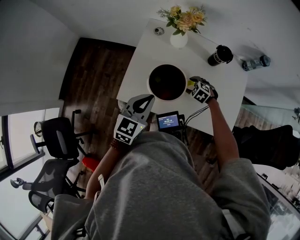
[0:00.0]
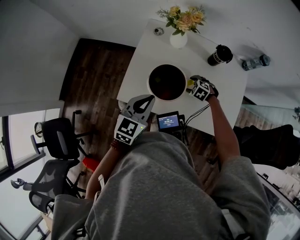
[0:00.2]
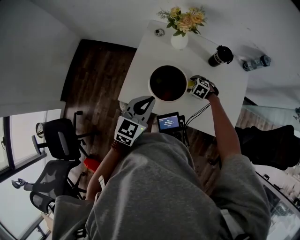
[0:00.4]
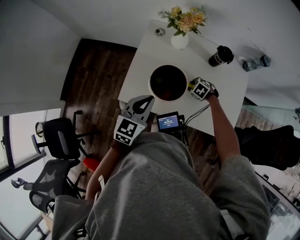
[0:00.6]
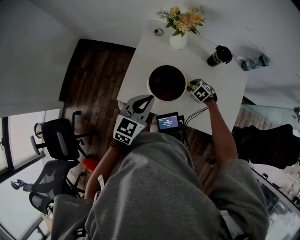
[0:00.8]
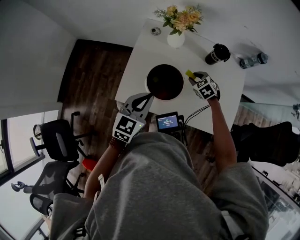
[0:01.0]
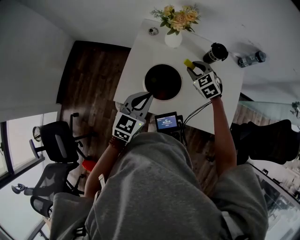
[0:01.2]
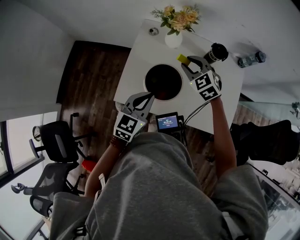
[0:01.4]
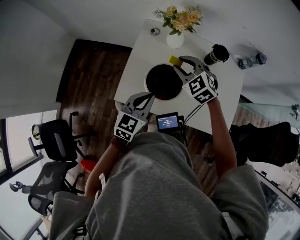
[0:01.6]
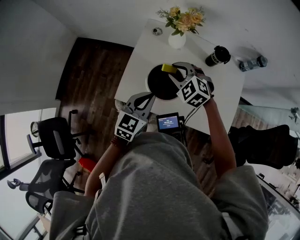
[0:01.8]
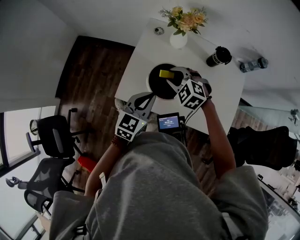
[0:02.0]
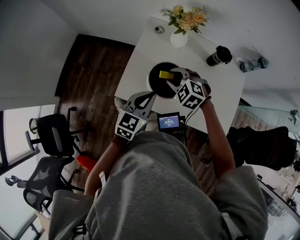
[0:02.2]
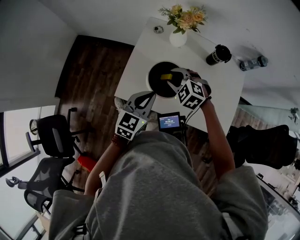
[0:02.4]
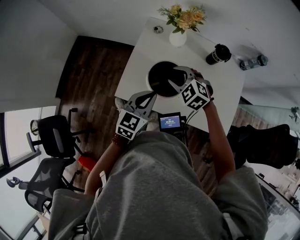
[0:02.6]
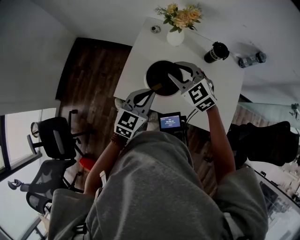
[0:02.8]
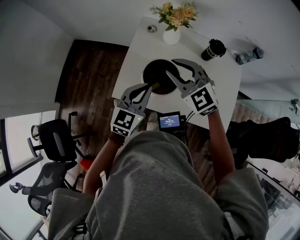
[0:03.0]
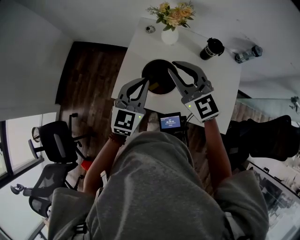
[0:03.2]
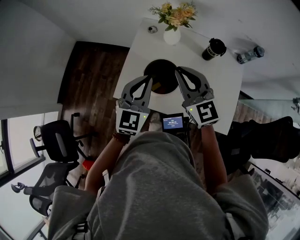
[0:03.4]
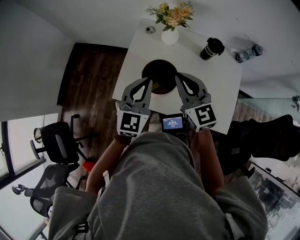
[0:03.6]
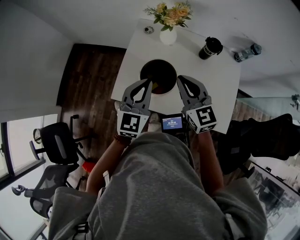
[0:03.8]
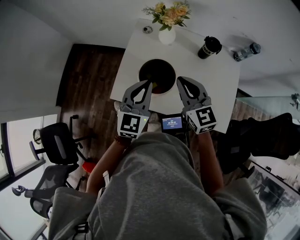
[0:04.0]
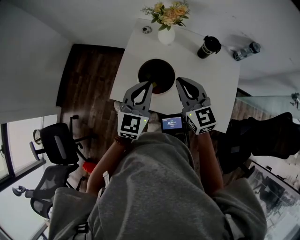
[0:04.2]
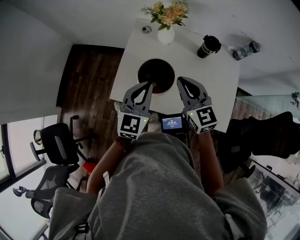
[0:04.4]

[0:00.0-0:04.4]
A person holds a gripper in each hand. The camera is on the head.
0:00.0 to 0:01.4: The right gripper shifts roughly 25 cm upward, swivels roughly 30 degrees, and closes its fingers.
0:01.4 to 0:03.0: The right gripper is displaced upward, to the left and backward by approximately 15 cm, and turns by some 20 degrees.
0:03.0 to 0:04.4: The right gripper moves to the right, some 5 cm, swivels about 30 degrees, and closes its fingers.

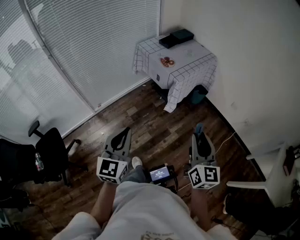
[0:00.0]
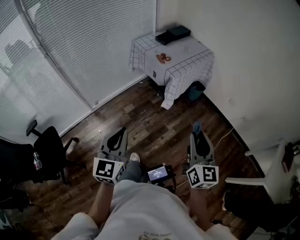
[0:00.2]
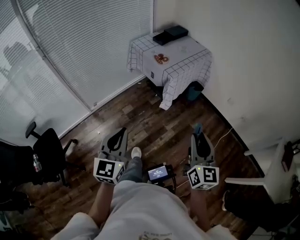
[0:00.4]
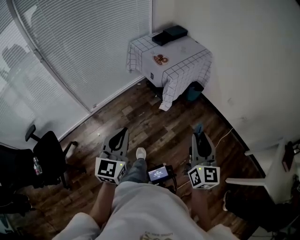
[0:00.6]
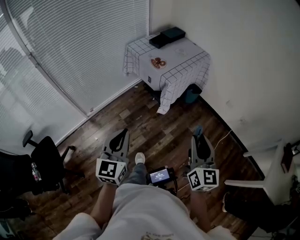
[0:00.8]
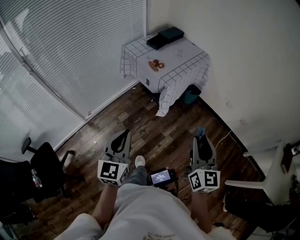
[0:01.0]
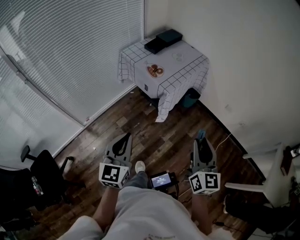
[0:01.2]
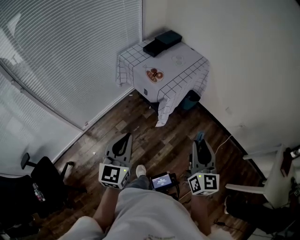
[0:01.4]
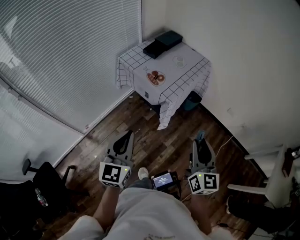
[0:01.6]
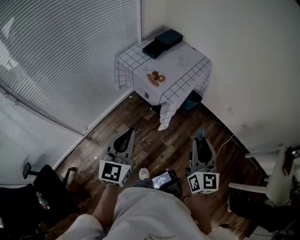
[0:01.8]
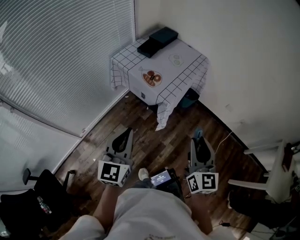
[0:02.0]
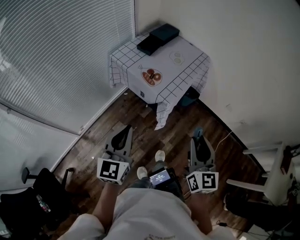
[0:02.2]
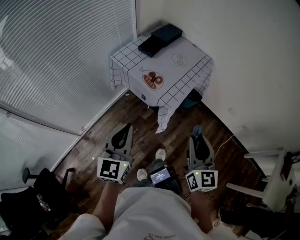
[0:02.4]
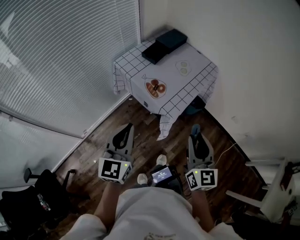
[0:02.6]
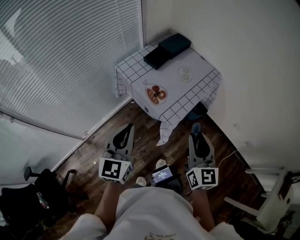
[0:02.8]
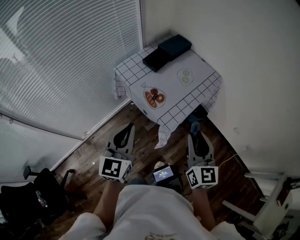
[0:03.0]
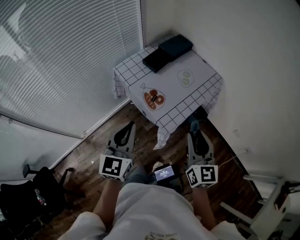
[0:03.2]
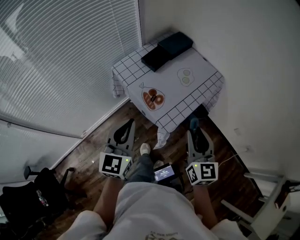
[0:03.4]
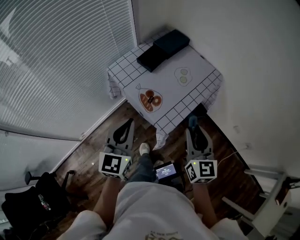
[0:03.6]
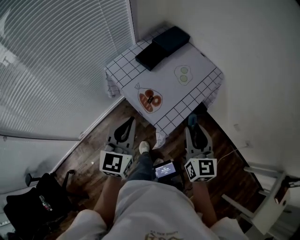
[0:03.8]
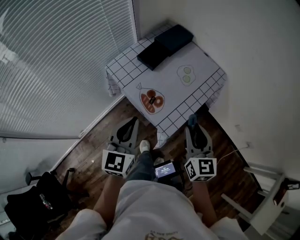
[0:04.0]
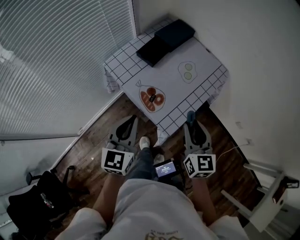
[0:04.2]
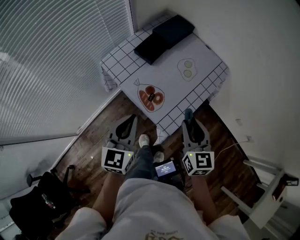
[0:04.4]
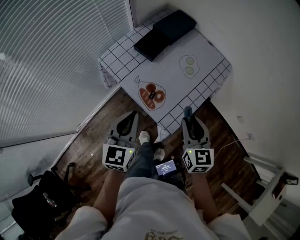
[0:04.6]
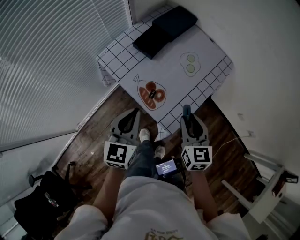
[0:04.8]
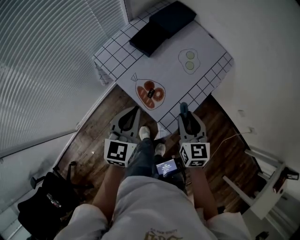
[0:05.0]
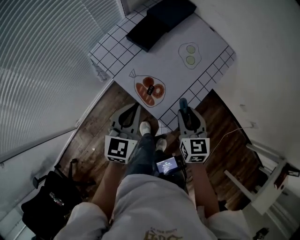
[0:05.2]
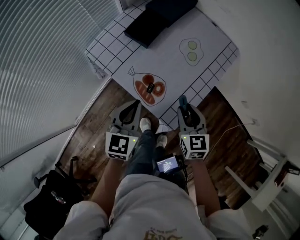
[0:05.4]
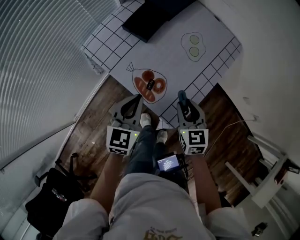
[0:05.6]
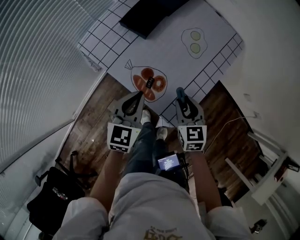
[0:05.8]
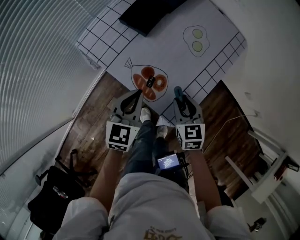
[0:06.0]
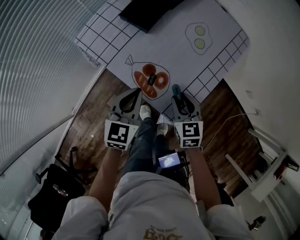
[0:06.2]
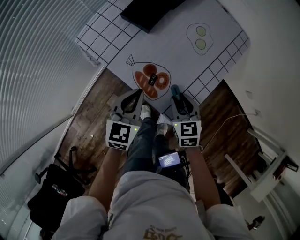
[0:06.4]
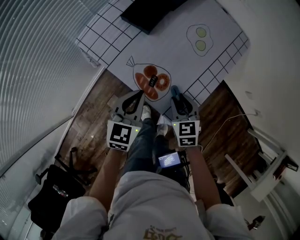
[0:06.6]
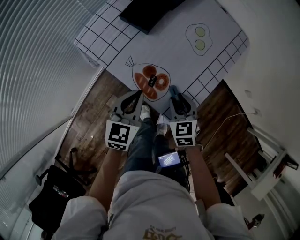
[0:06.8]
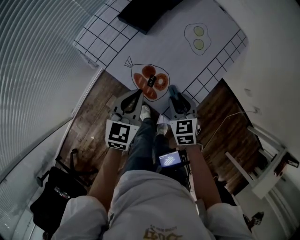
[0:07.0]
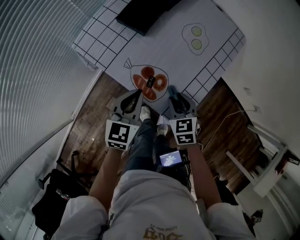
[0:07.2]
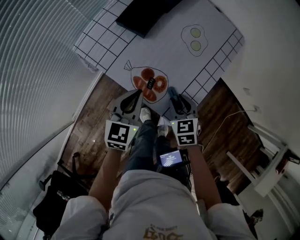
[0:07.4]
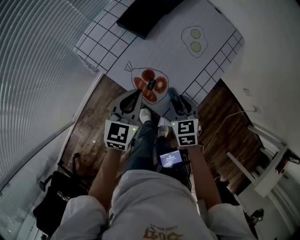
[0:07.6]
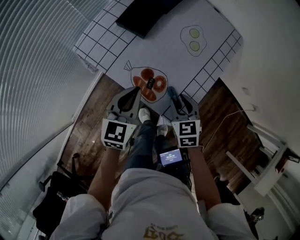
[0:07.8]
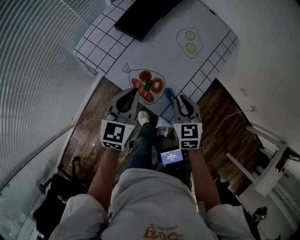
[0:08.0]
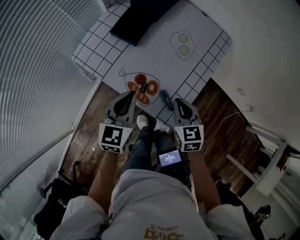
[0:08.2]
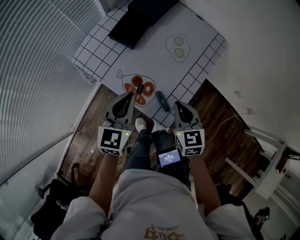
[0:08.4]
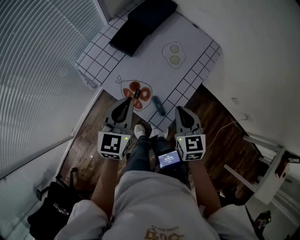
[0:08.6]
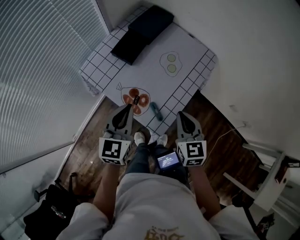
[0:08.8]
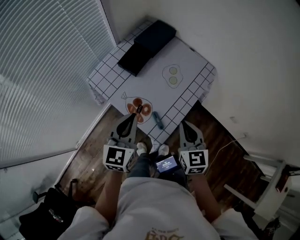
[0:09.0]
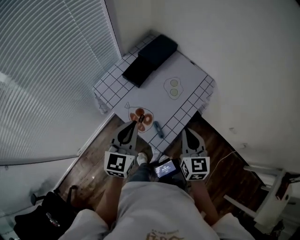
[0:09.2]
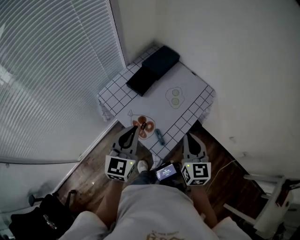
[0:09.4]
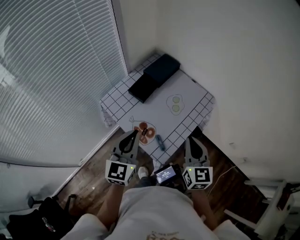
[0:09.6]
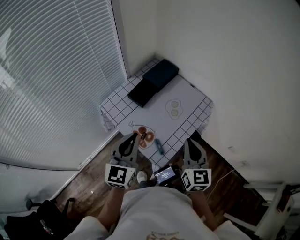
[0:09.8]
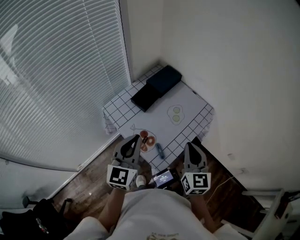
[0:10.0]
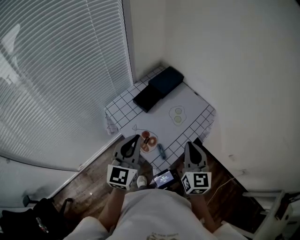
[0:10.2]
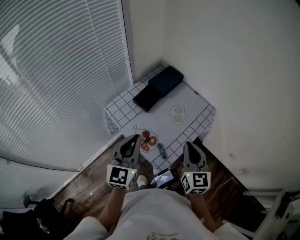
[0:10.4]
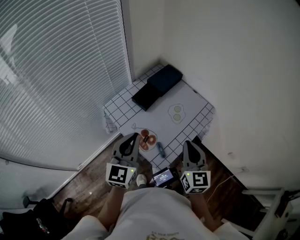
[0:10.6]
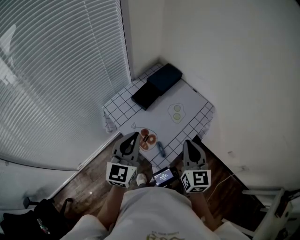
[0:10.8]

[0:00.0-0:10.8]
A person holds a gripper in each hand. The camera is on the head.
0:00.0 to 0:01.6: Both grippers move forward, approximately 25 cm.
0:01.6 to 0:03.0: Both grippers travel together forward, approximately 25 cm.
0:03.0 to 0:04.6: Both grippers travel together forward and downward, about 20 cm.
0:04.6 to 0:06.2: The right gripper is displaced downward by some 15 cm, while the left gripper moves downward and forward, roughly 15 cm.
0:06.2 to 0:07.8: The grippers move only a little.
0:07.8 to 0:09.2: The right gripper travels upward and to the right by about 20 cm, rotates roughly 30 degrees, and closes its fingers. The left gripper is displaced upward by about 15 cm.
0:09.2 to 0:10.8: The two grippers go roughly 5 cm upward.

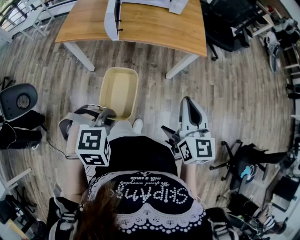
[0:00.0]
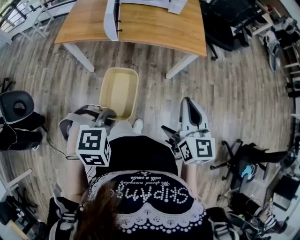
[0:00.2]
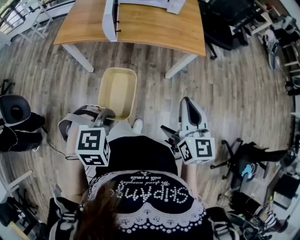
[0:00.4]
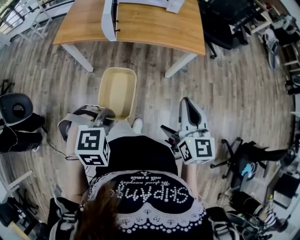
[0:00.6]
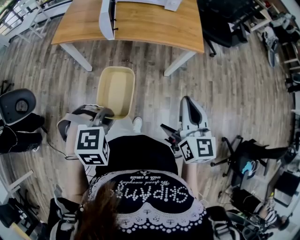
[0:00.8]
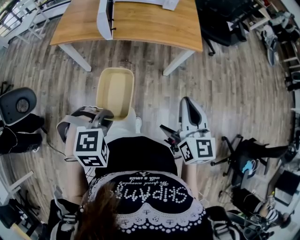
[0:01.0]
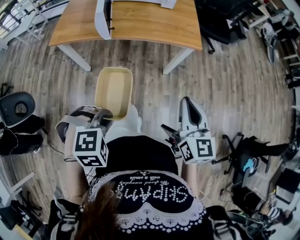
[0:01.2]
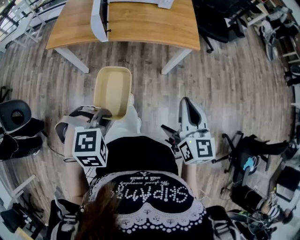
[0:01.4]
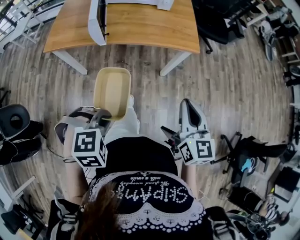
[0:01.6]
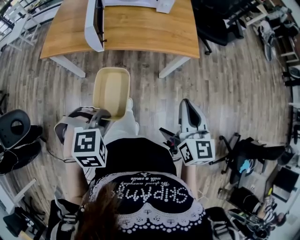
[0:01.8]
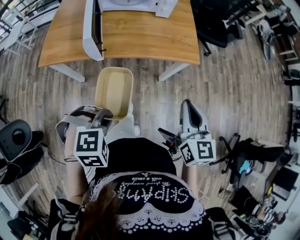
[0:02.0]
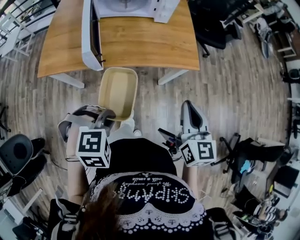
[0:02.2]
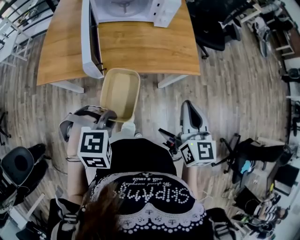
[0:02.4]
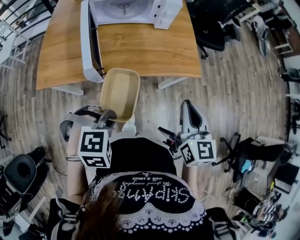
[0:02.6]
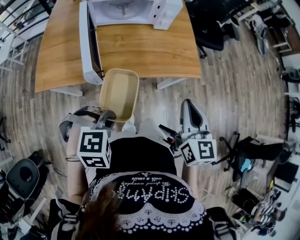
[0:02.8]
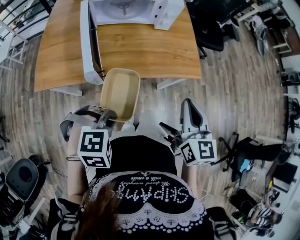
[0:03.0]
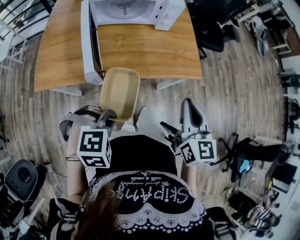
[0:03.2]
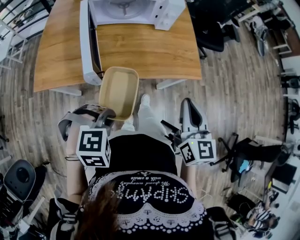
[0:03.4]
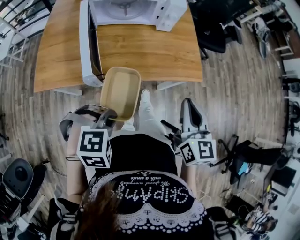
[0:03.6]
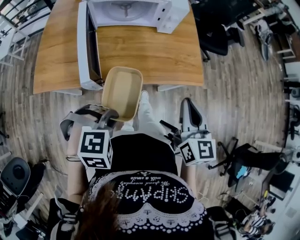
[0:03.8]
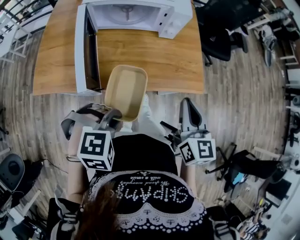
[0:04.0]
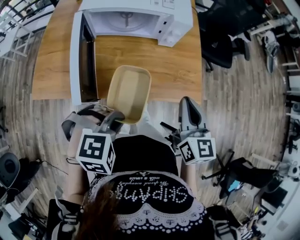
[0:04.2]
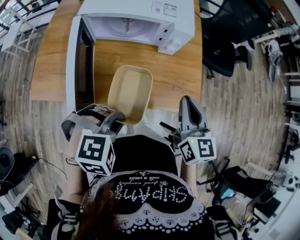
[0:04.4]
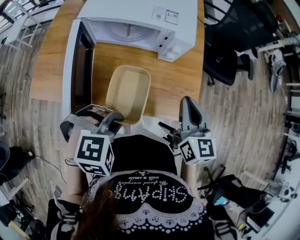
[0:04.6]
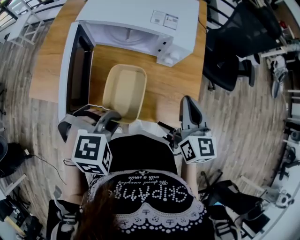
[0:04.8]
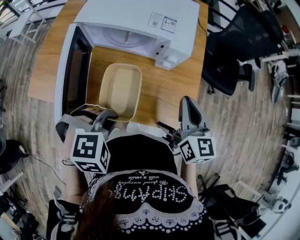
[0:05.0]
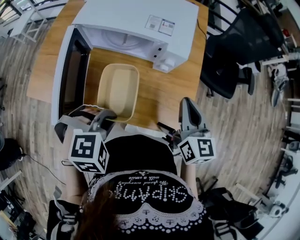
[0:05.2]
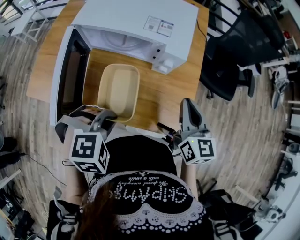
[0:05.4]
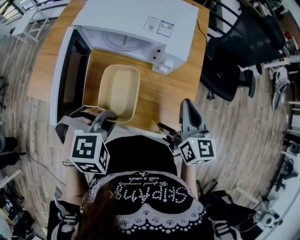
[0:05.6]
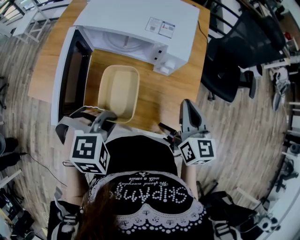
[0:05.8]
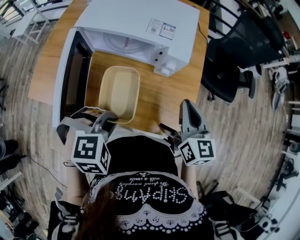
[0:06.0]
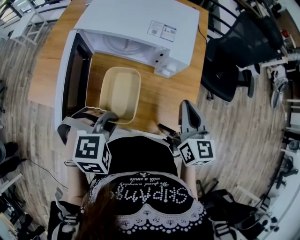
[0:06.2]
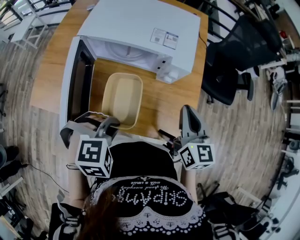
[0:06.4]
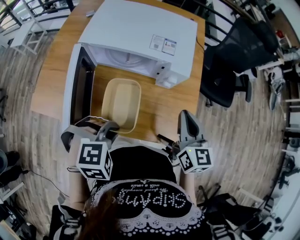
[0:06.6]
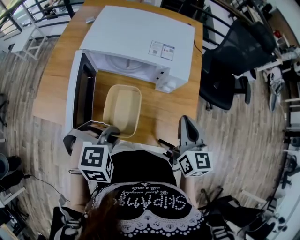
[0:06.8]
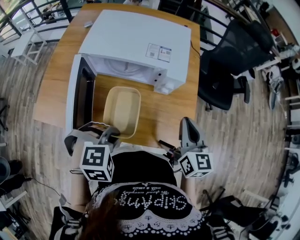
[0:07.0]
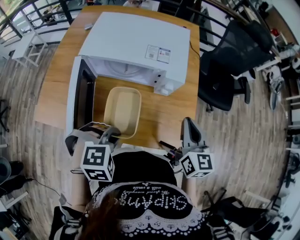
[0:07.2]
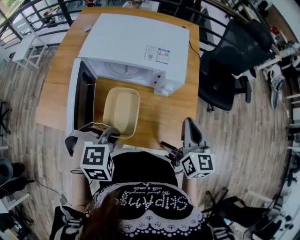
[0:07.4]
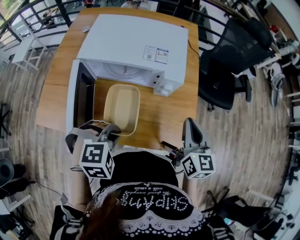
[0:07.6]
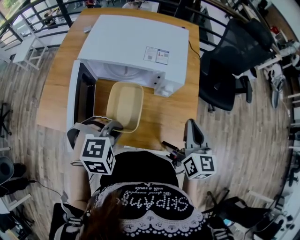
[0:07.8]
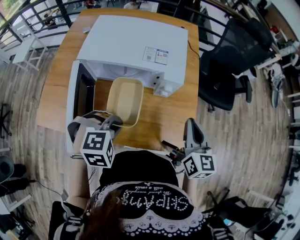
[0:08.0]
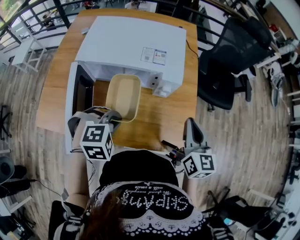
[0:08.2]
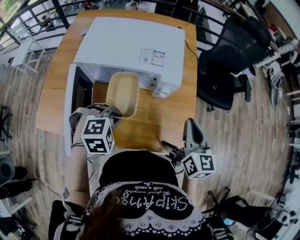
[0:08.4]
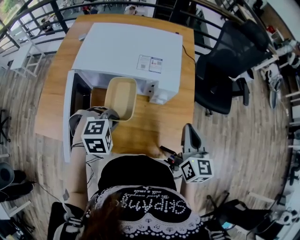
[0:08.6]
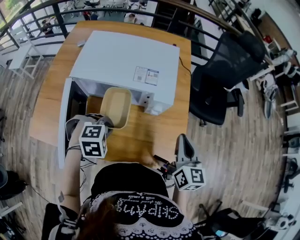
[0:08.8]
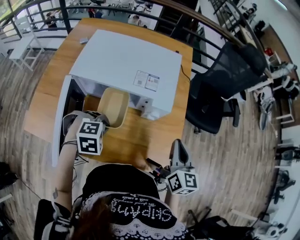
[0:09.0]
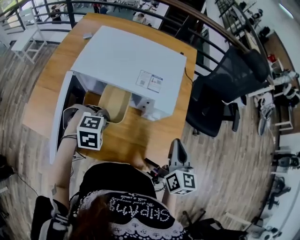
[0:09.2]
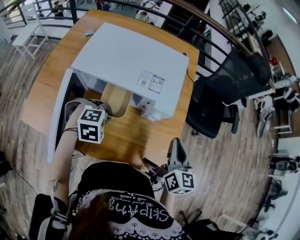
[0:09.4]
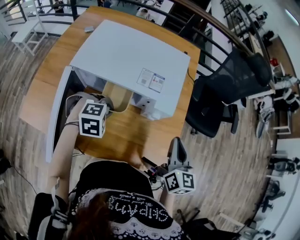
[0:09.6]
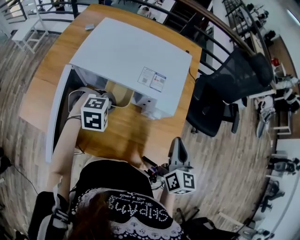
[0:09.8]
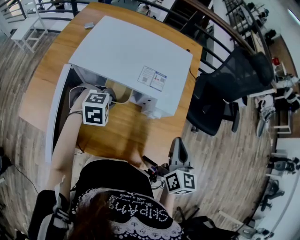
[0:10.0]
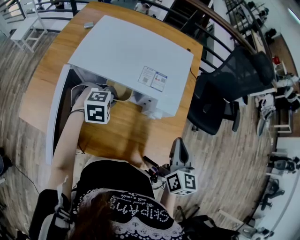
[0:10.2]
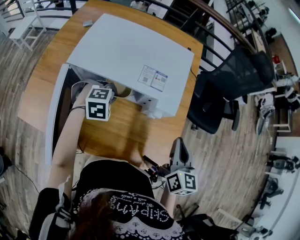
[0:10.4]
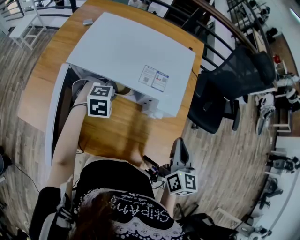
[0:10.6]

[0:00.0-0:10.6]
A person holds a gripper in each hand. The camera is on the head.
0:00.0 to 0:01.6: The right gripper changes place by approximately 5 cm.
0:01.6 to 0:03.0: Both grippers travel together forward and to the left, approximately 20 cm.
0:03.0 to 0:04.6: The two grippers go approximately 20 cm forward.
0:04.6 to 0:06.0: The two grippers go about 5 cm forward.
0:06.0 to 0:07.6: The grippers stay close to where they were, moving slightly.
0:07.6 to 0:09.0: The left gripper moves forward and downward, roughly 10 cm.
0:09.0 to 0:10.6: The left gripper shifts about 10 cm forward.
